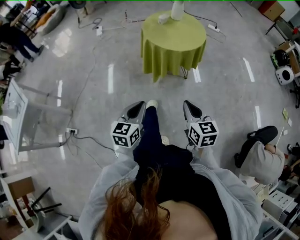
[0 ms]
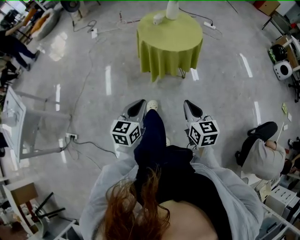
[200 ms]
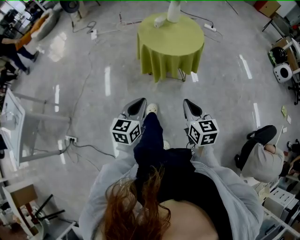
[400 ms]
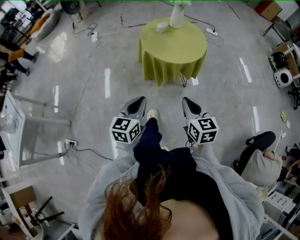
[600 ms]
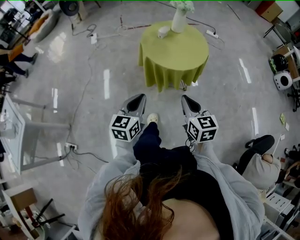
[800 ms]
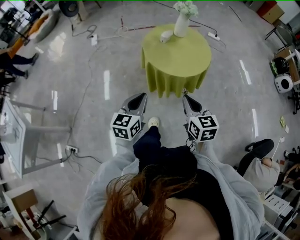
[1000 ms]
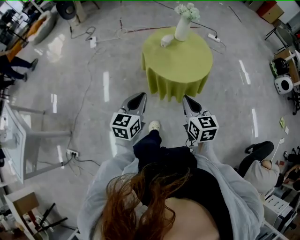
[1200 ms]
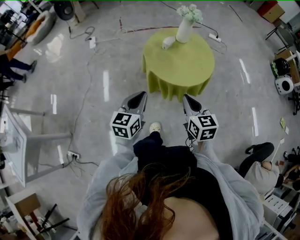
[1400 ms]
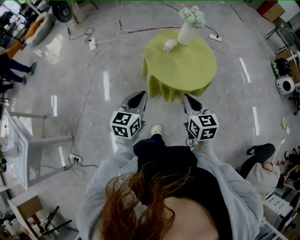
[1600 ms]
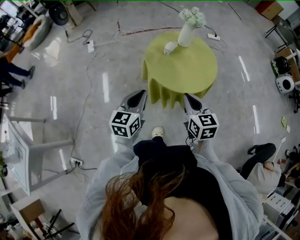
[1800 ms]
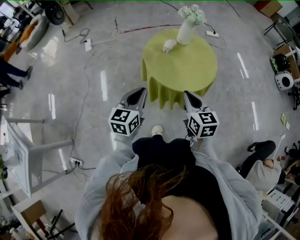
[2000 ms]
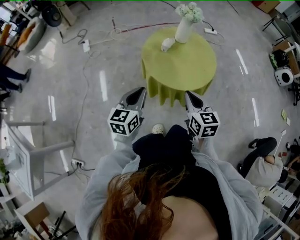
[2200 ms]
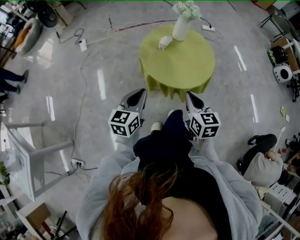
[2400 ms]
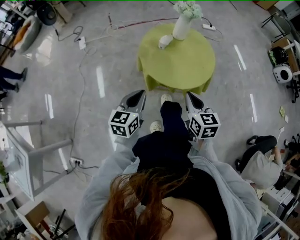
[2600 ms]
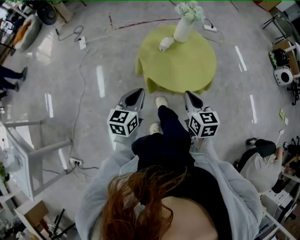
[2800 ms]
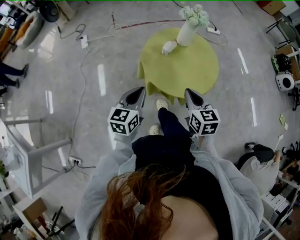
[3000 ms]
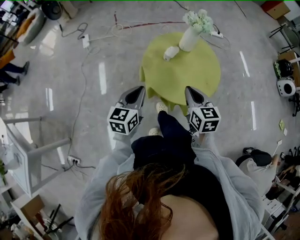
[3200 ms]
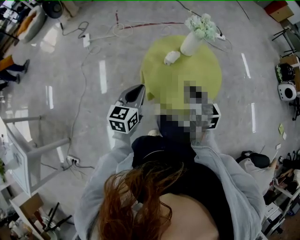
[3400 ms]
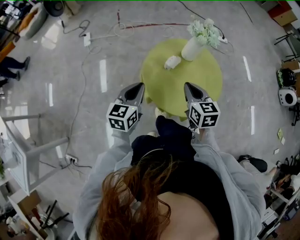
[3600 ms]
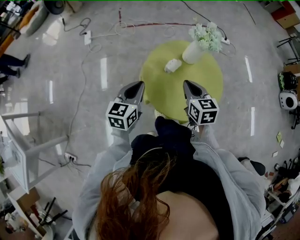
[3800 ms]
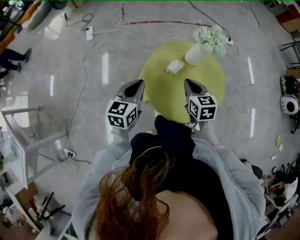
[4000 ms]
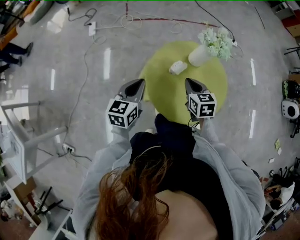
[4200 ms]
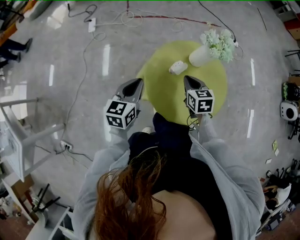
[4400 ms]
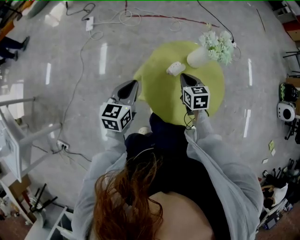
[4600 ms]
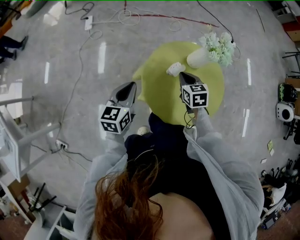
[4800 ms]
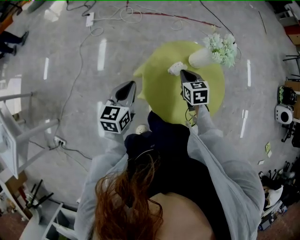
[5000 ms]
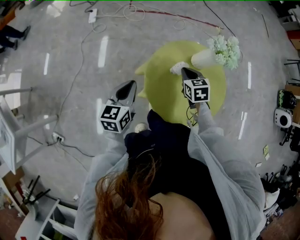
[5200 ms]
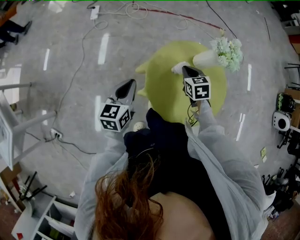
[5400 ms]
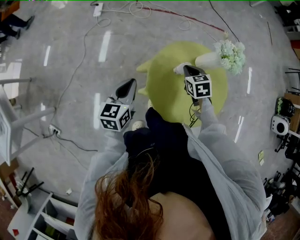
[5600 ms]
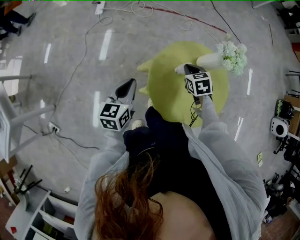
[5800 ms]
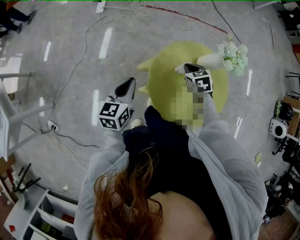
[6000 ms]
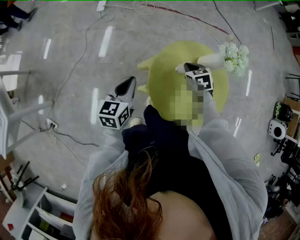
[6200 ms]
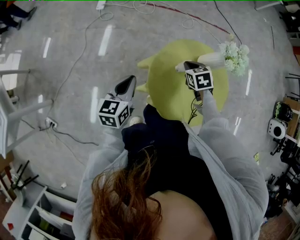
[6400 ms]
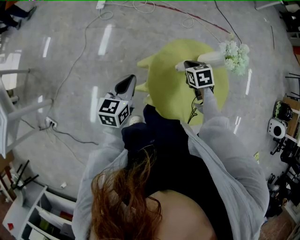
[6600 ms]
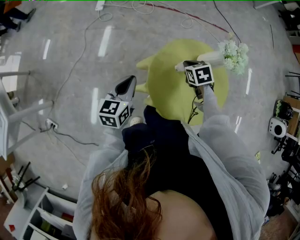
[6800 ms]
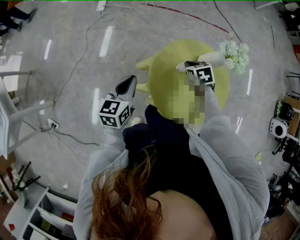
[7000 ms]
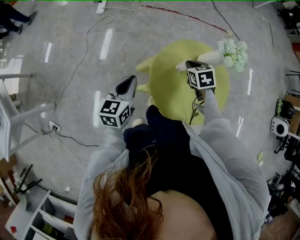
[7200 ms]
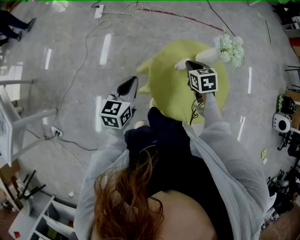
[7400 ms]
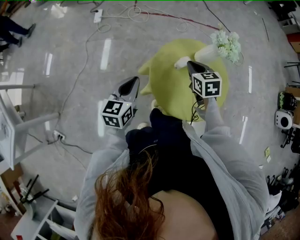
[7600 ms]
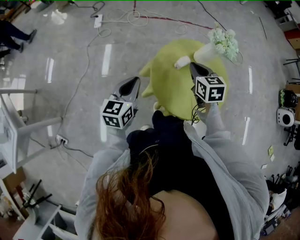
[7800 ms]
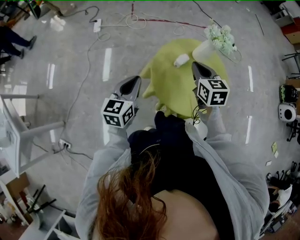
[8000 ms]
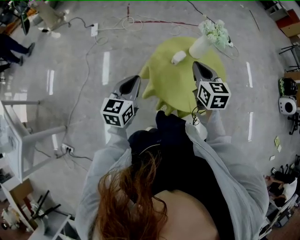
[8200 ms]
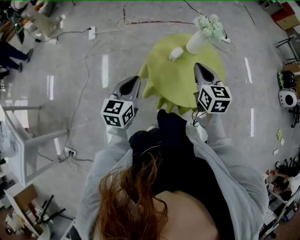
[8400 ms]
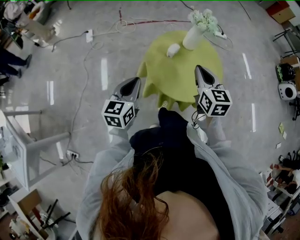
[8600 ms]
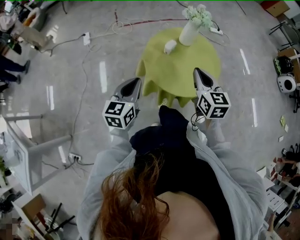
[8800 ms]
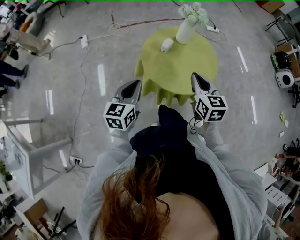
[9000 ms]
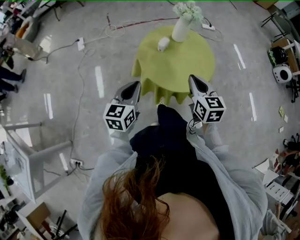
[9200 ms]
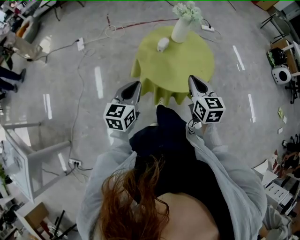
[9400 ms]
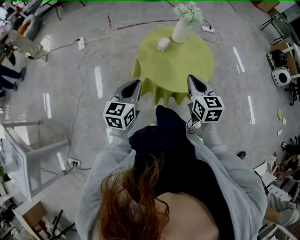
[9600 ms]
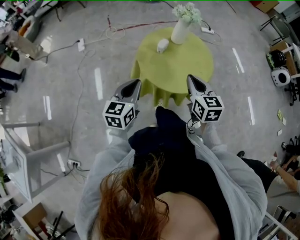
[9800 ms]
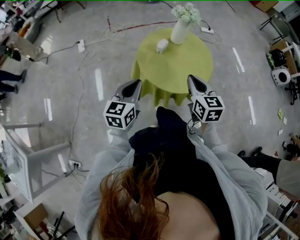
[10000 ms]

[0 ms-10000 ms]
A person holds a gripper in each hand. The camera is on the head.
0 ms to 1400 ms: The grippers both shift forward by roughly 30 cm.
1400 ms to 2800 ms: Both grippers move forward, some 10 cm.
2800 ms to 4200 ms: Both grippers travel together forward, roughly 20 cm.
4200 ms to 5800 ms: The right gripper travels forward by some 10 cm, and turns by roughly 20 degrees, while the left gripper goes roughly 5 cm to the left.
5800 ms to 7200 ms: The grippers stay close to where they were, moving slightly.
7200 ms to 8600 ms: The right gripper heads backward and upward, covering roughly 25 cm, and angles its fingers upward, by roughly 40 degrees; the left gripper shifts approximately 10 cm backward.
8600 ms to 10000 ms: The left gripper ends up about 5 cm from where it was. The right gripper shifts approximately 10 cm backward.

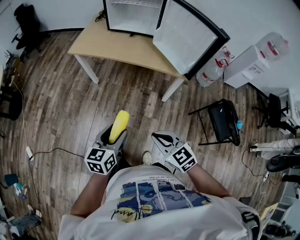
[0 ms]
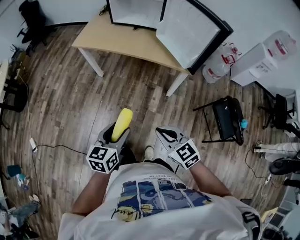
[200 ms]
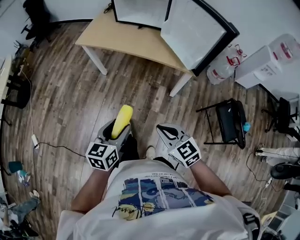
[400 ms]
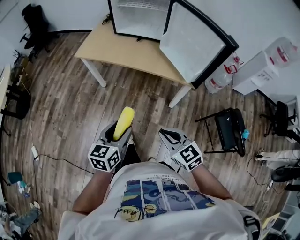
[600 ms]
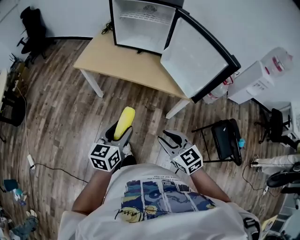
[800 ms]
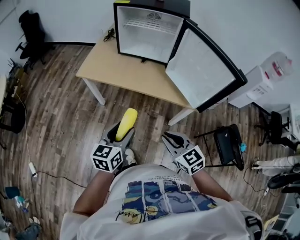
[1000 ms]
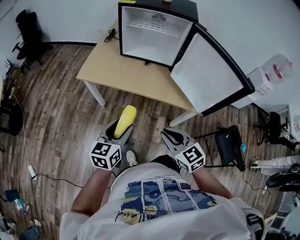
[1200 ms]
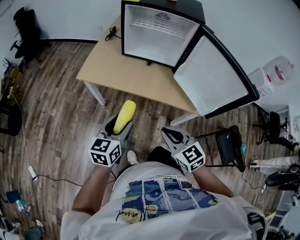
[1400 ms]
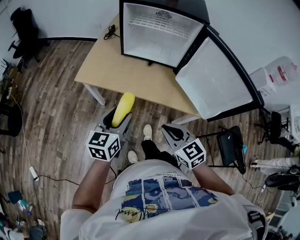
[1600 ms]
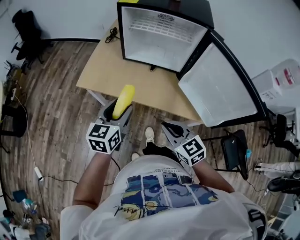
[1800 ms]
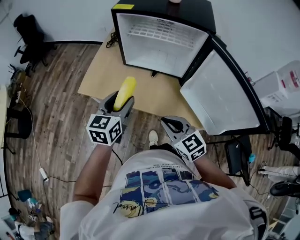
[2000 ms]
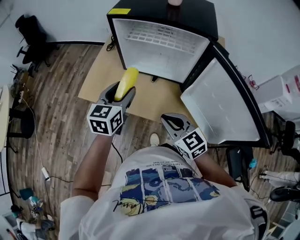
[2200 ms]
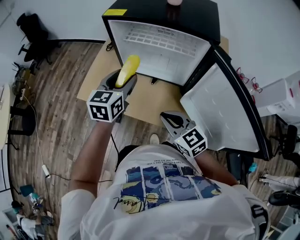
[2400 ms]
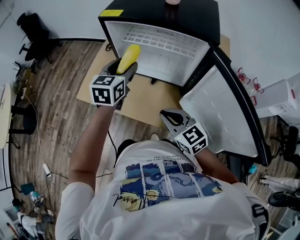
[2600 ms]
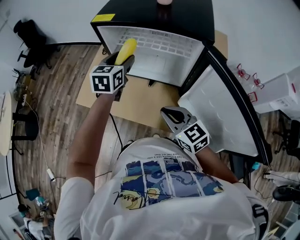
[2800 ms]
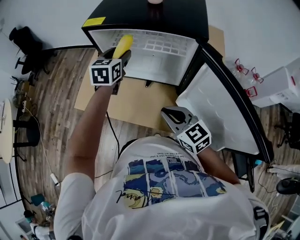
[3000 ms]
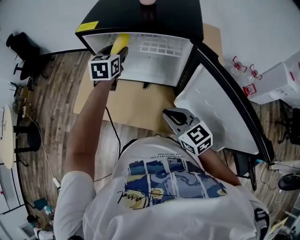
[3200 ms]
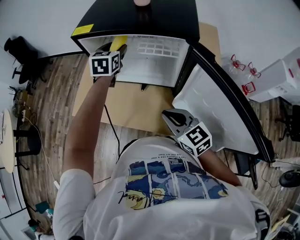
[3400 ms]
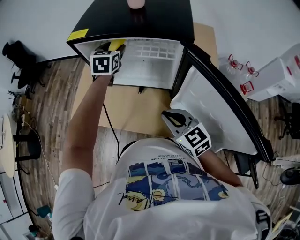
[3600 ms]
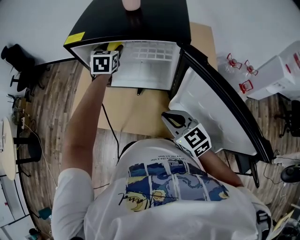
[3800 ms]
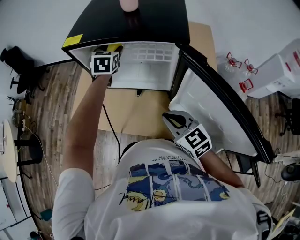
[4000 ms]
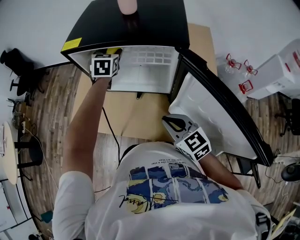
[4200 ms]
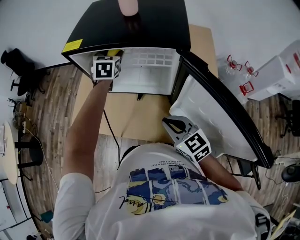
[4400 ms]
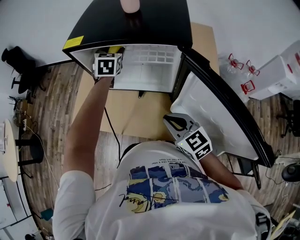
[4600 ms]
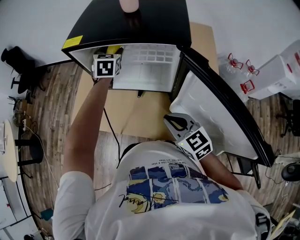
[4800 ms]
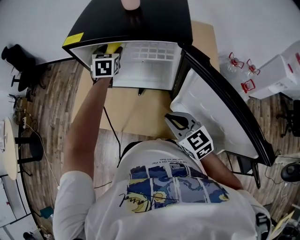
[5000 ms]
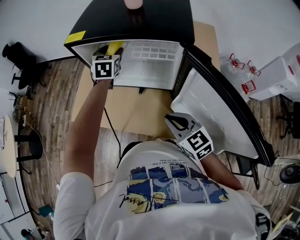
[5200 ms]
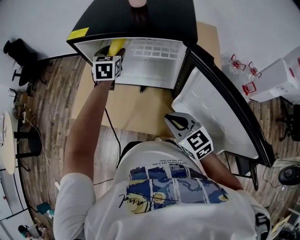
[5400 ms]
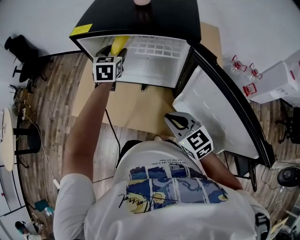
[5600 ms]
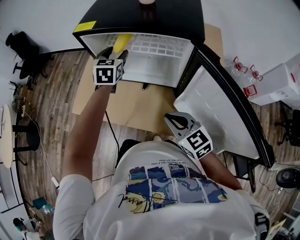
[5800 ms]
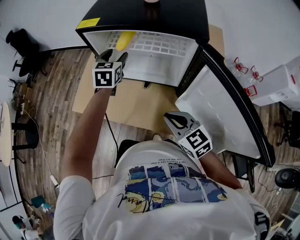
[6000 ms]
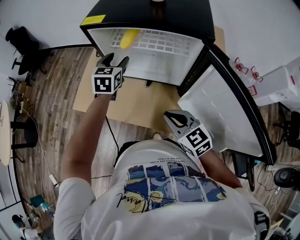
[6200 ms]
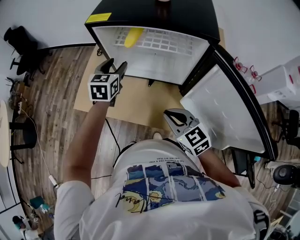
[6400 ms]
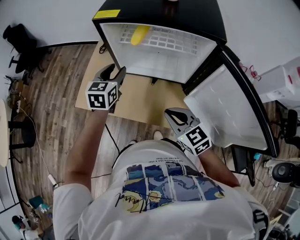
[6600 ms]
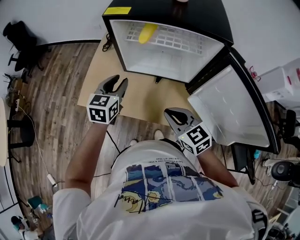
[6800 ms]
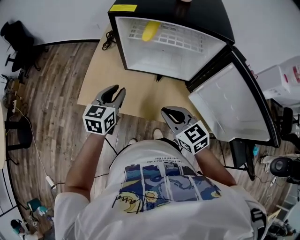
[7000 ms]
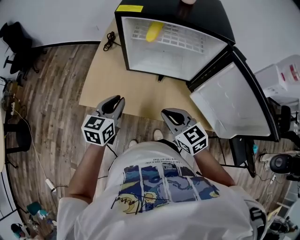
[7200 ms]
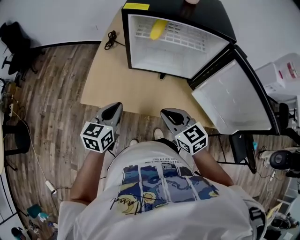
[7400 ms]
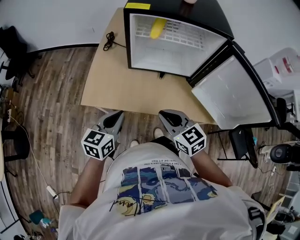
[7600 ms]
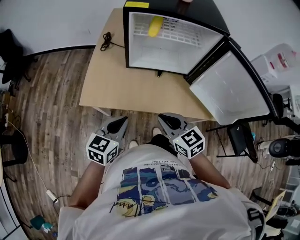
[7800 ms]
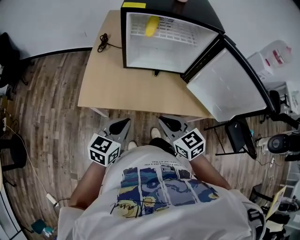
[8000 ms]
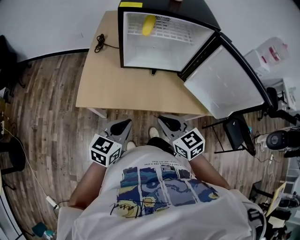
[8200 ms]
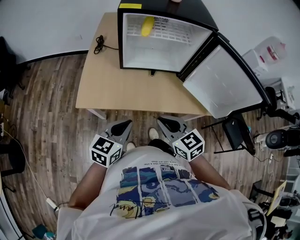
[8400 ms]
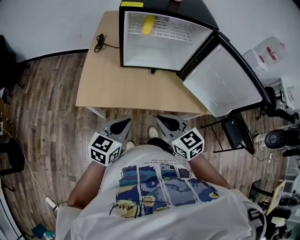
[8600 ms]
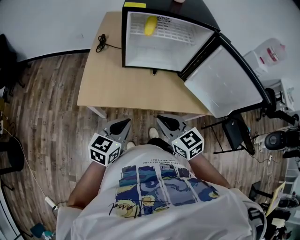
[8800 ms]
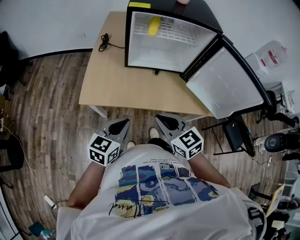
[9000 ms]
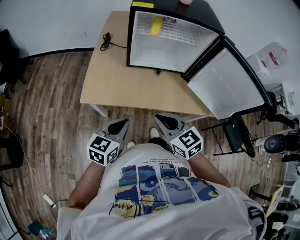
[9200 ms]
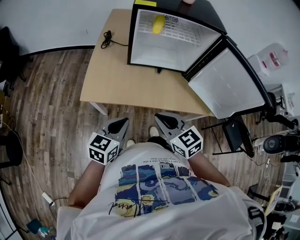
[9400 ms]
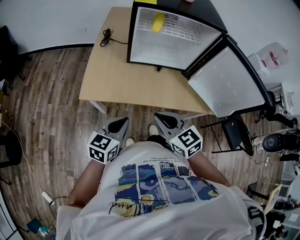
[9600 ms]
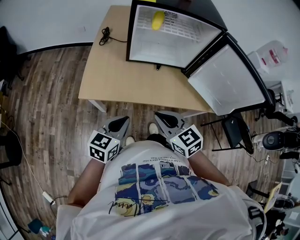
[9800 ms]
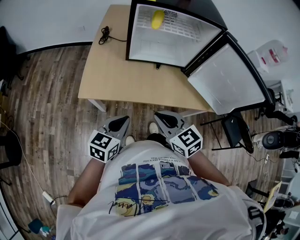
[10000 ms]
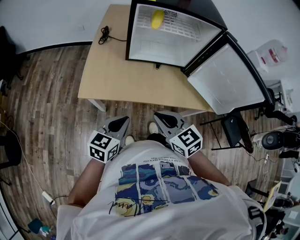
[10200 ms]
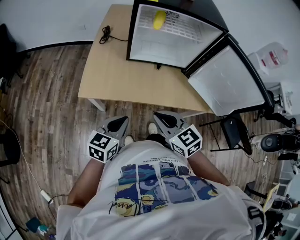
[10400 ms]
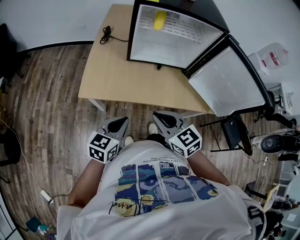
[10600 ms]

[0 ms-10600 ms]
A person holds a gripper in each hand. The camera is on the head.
0 ms to 1600 ms: The two grippers go some 35 cm forward. The right gripper opens, then closes once more.
1600 ms to 3000 ms: The right gripper travels forward and to the right by some 25 cm; the left gripper heads forward, covering some 40 cm.
3000 ms to 4600 ms: The left gripper is displaced forward and to the right by roughly 10 cm.
4600 ms to 6000 ms: The left gripper travels backward and to the left by some 10 cm.
6000 ms to 7600 ms: The right gripper heads to the left, covering approximately 20 cm, while the left gripper heads backward and to the left, covering some 35 cm, turns by approximately 30 degrees, and closes its fingers.
7600 ms to 9000 ms: The two grippers go some 5 cm backward.
9000 ms to 10600 ms: The grippers stay close to where they were, moving slightly.

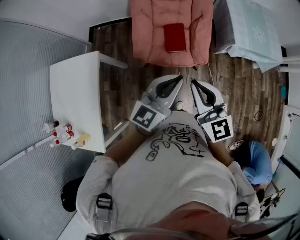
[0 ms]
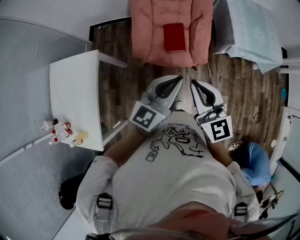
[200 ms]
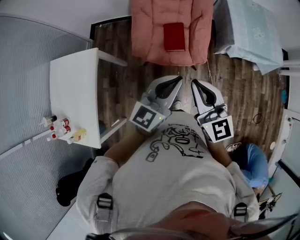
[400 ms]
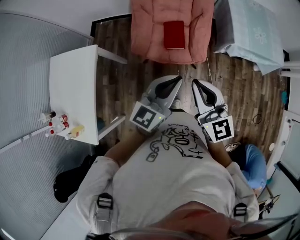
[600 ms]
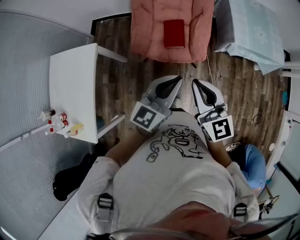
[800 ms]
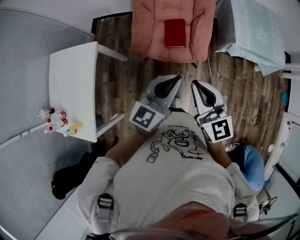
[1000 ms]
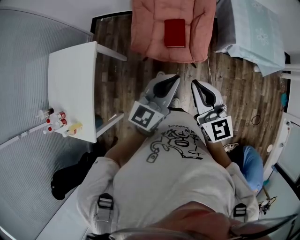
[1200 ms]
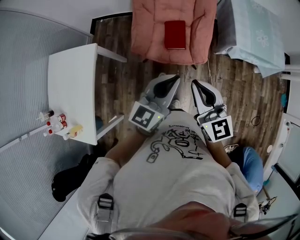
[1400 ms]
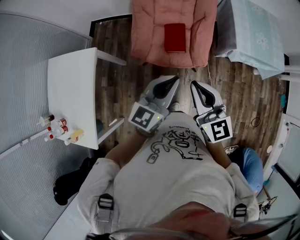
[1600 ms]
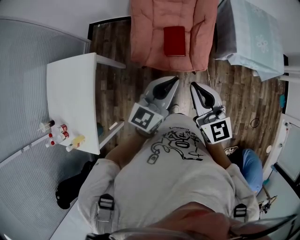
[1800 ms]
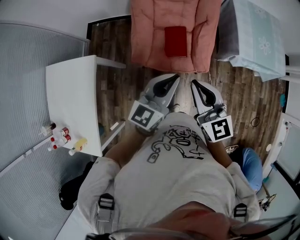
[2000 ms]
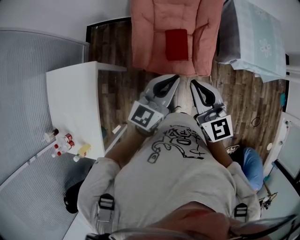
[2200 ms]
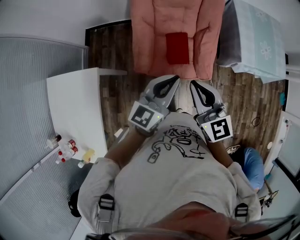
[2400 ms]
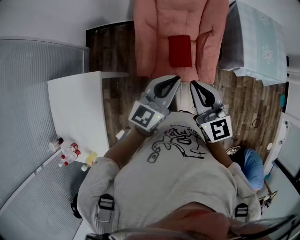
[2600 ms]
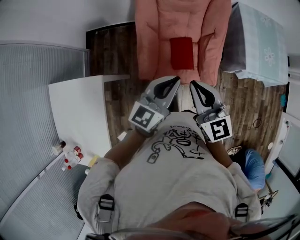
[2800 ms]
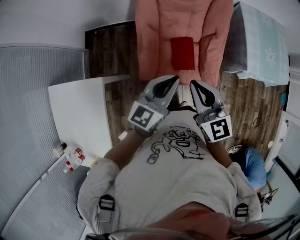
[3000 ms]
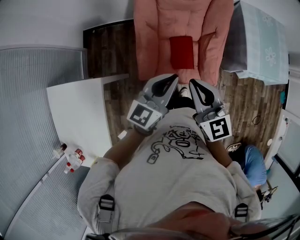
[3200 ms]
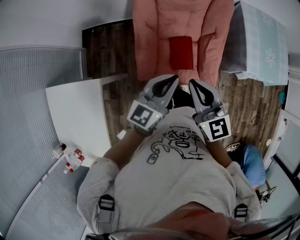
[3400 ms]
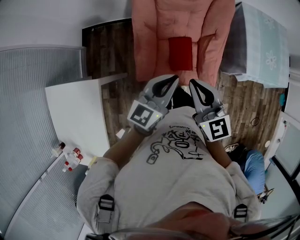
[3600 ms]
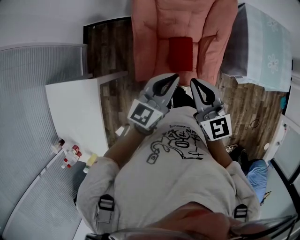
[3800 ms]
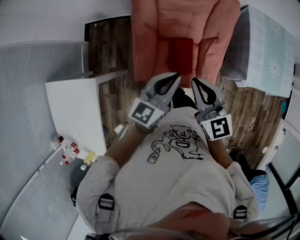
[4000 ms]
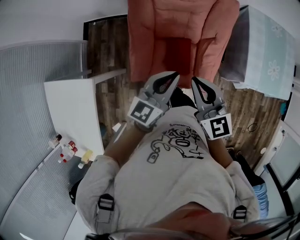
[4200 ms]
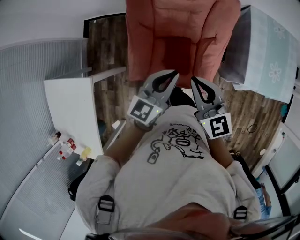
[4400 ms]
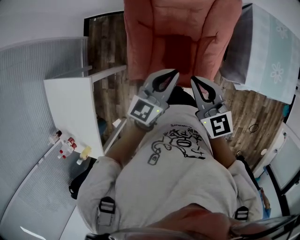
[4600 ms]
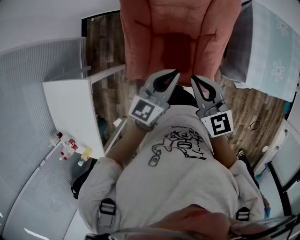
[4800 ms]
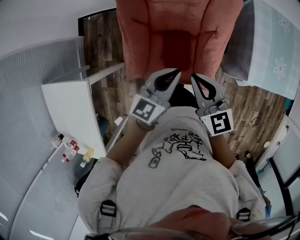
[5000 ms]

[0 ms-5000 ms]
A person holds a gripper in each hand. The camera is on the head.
1600 ms to 3400 ms: The two grippers go some 30 cm forward and to the left.
3400 ms to 5000 ms: The grippers both shift forward, to the right and downward by approximately 20 cm.
